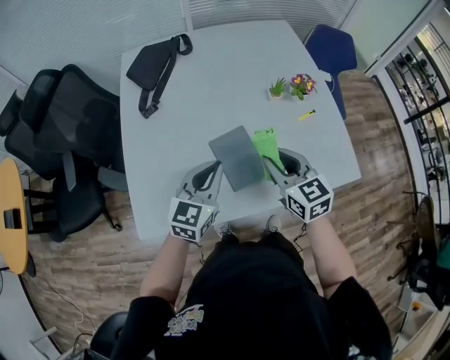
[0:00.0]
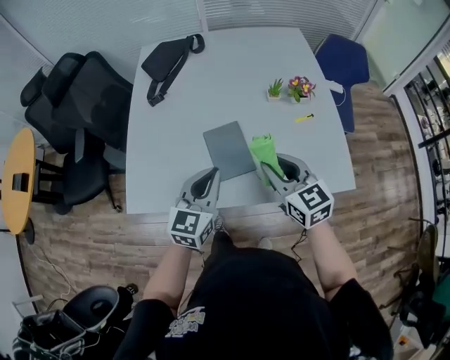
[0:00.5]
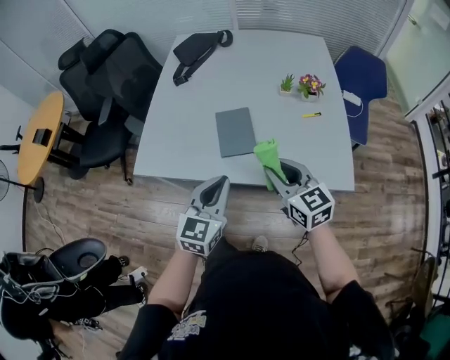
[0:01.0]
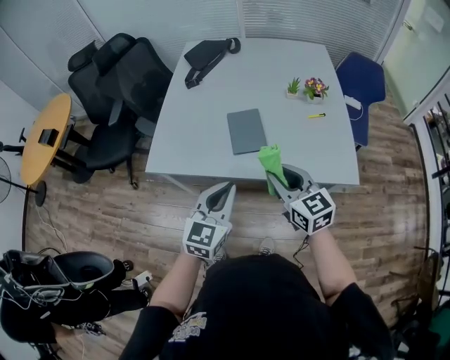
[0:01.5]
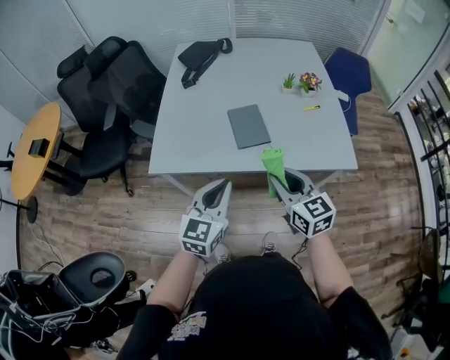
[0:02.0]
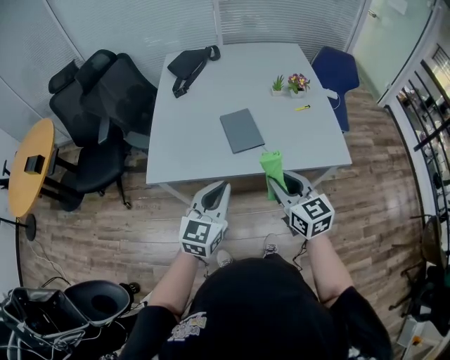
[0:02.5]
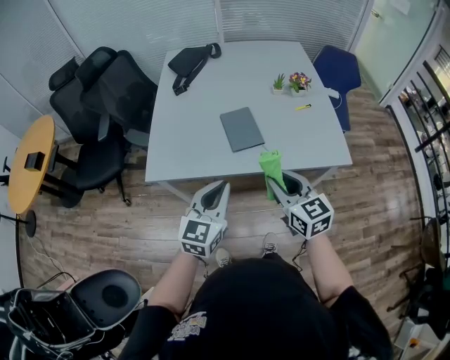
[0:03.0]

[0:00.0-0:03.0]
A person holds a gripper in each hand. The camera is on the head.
0:00.0 to 0:01.5: The two grippers go approximately 25 cm backward. The right gripper changes its angle by about 20 degrees.
0:01.5 to 0:03.0: The right gripper goes some 5 cm backward. The left gripper heads to the left, covering some 5 cm.

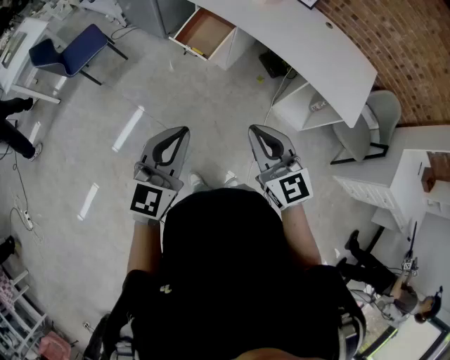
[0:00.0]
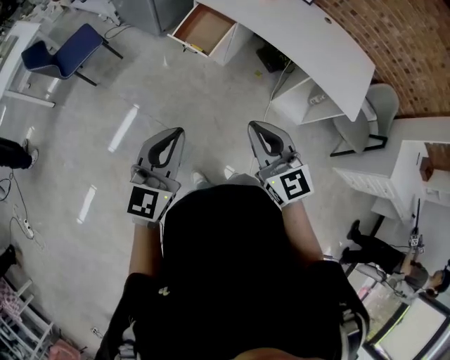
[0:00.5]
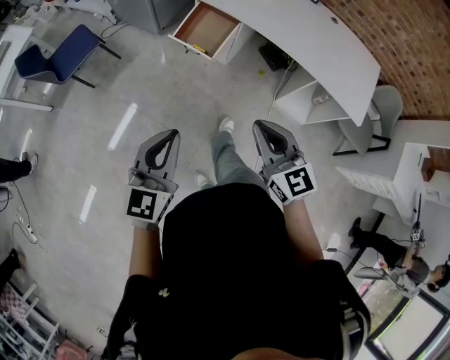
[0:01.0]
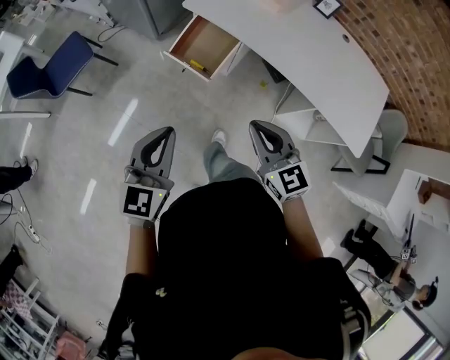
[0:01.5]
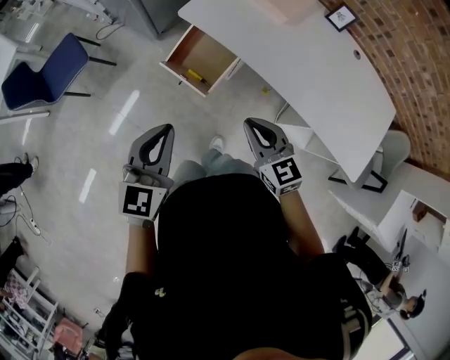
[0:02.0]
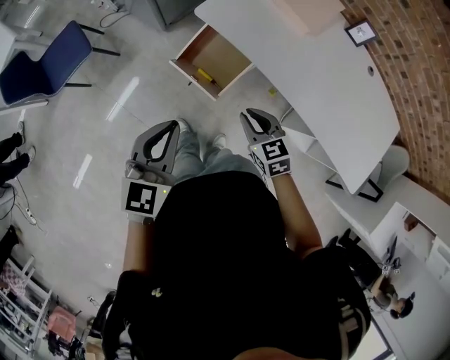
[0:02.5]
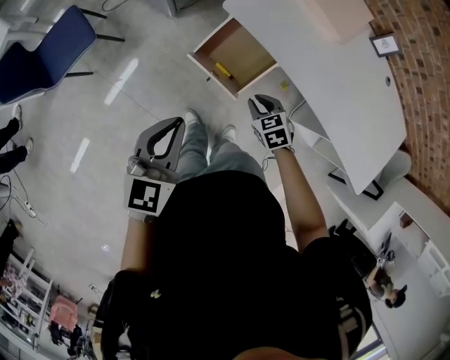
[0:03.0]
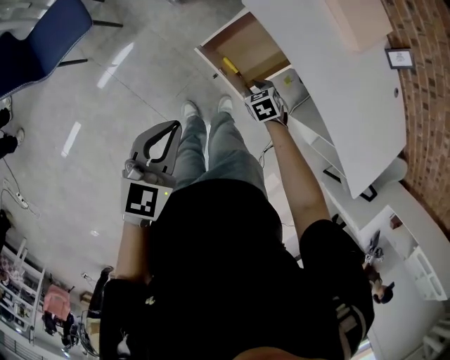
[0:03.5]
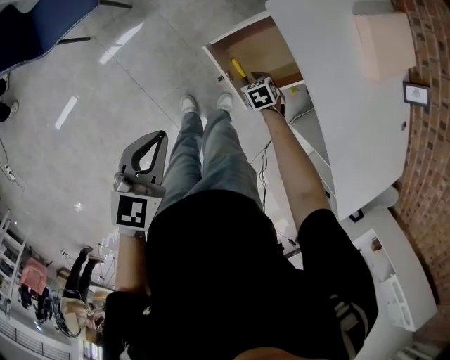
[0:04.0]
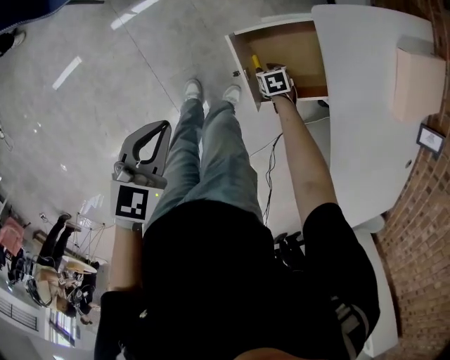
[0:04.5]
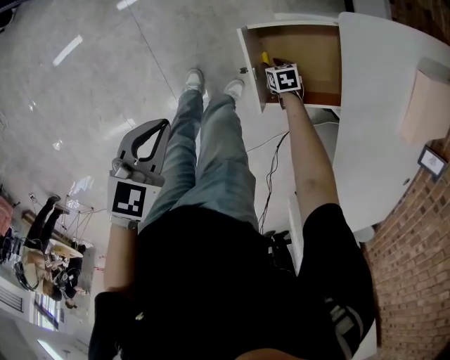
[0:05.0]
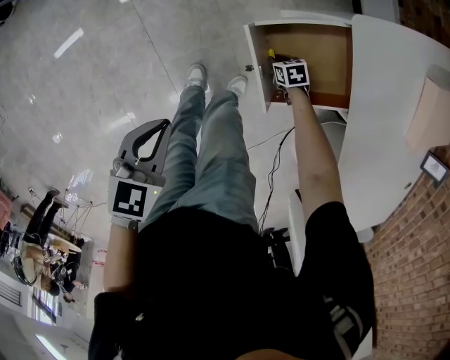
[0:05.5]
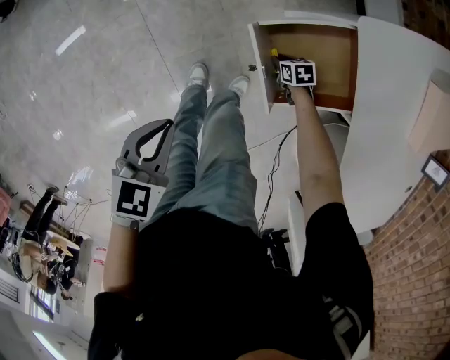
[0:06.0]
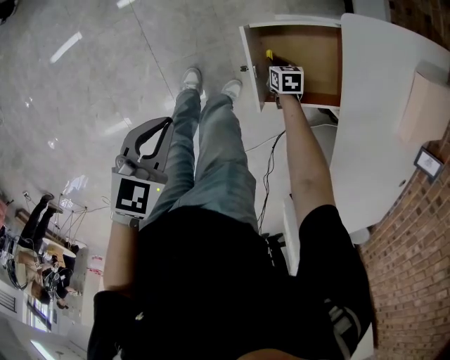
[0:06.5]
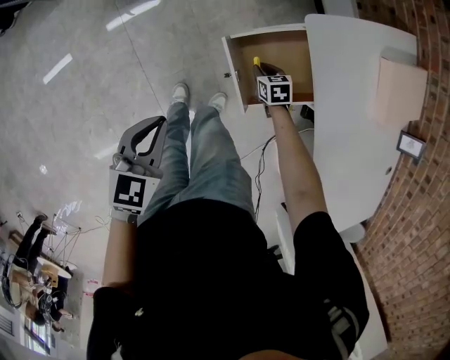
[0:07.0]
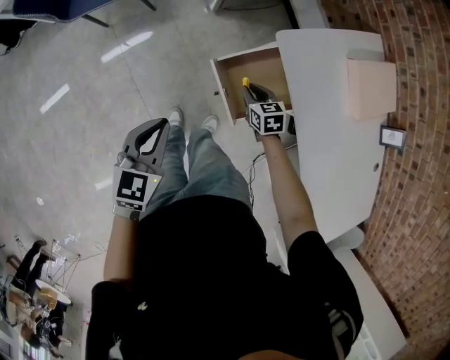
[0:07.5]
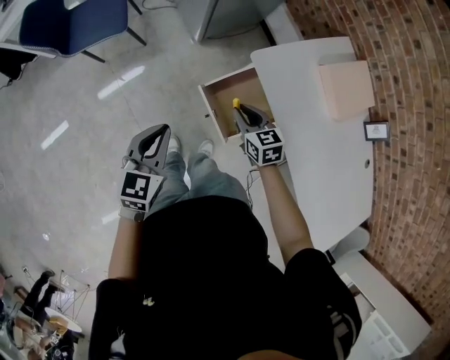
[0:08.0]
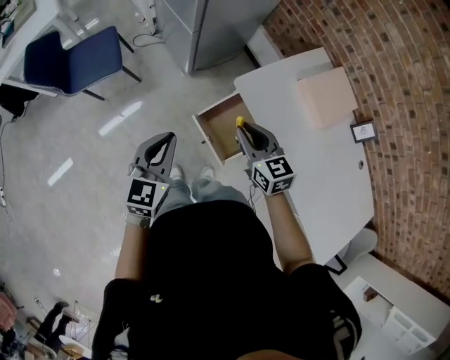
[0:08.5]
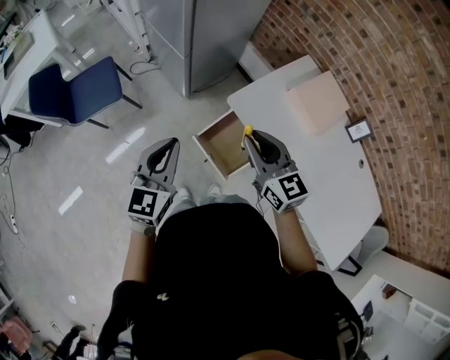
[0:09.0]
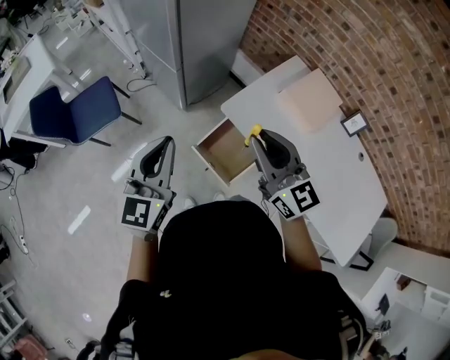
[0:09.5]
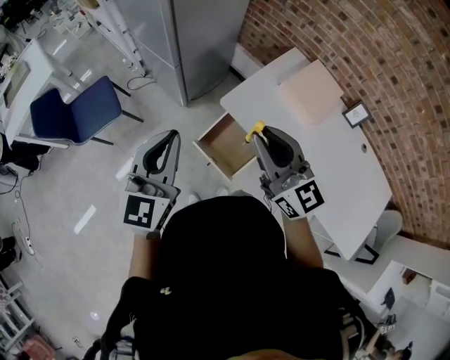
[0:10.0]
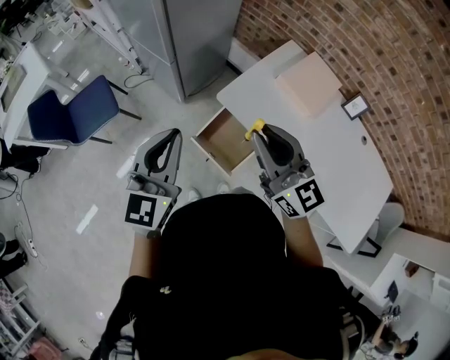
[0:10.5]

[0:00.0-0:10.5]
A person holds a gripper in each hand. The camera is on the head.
0:00.0 to 0:02.0: The two grippers go approximately 35 cm forward.
0:02.0 to 0:04.0: The right gripper is displaced downward by about 40 cm, angles its fingers downward, by roughly 50 degrees, and opens up, while the left gripper changes place by roughly 30 cm, and rotates roughly 30 degrees.
0:04.0 to 0:06.5: The grippers both shift downward by some 10 cm.
0:06.5 to 0:08.5: The left gripper is displaced upward by roughly 25 cm, and changes its angle by approximately 30 degrees; the right gripper heads upward, covering some 50 cm, and points its fingers roughly 40 degrees further upward.
0:08.5 to 0:10.5: Both grippers travel together upward, some 20 cm. The right gripper rotates some 30 degrees.

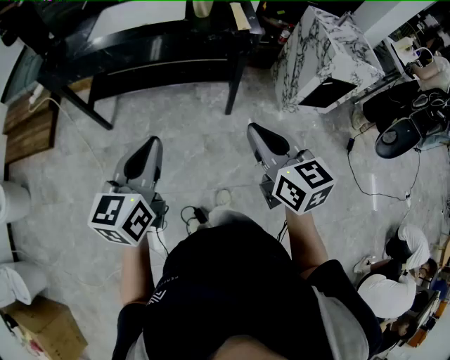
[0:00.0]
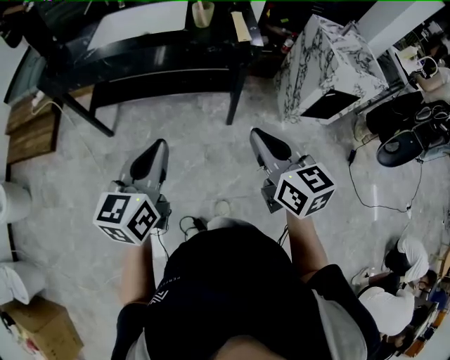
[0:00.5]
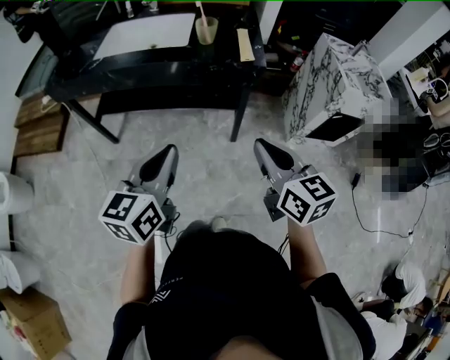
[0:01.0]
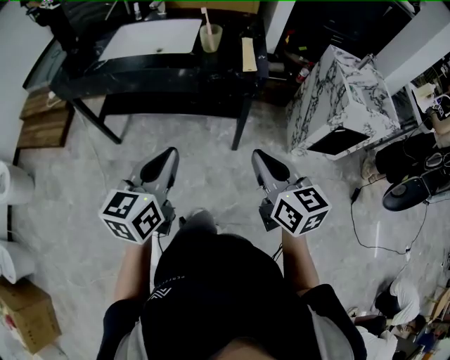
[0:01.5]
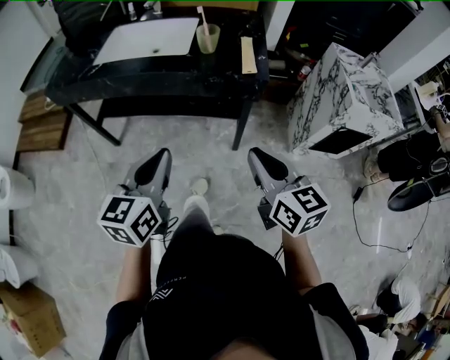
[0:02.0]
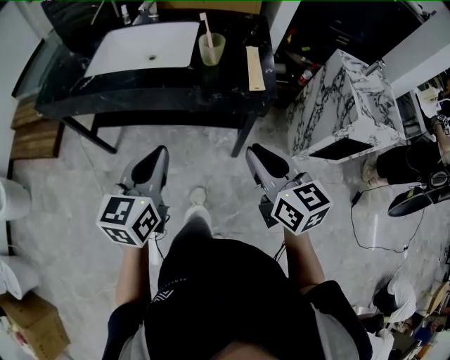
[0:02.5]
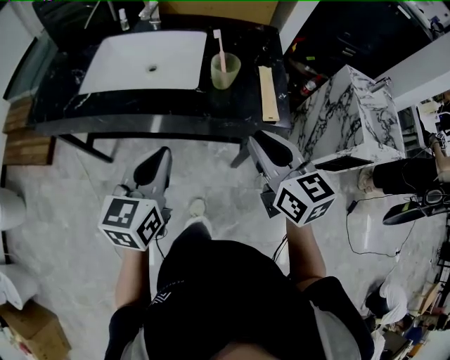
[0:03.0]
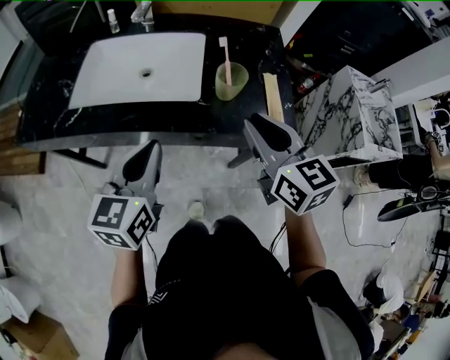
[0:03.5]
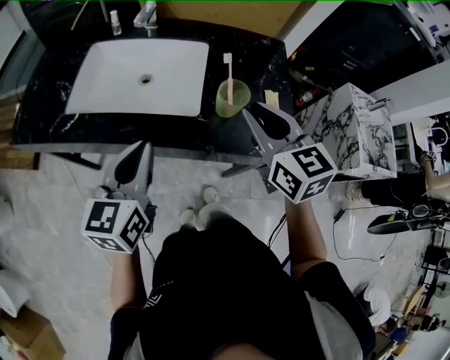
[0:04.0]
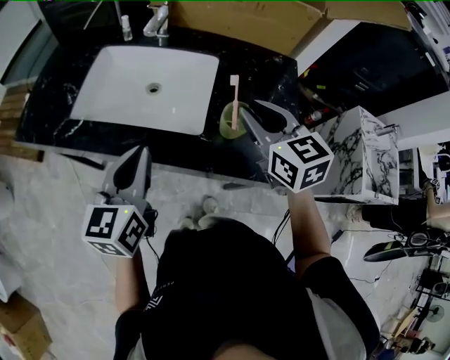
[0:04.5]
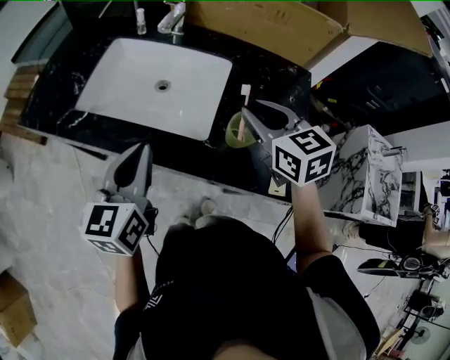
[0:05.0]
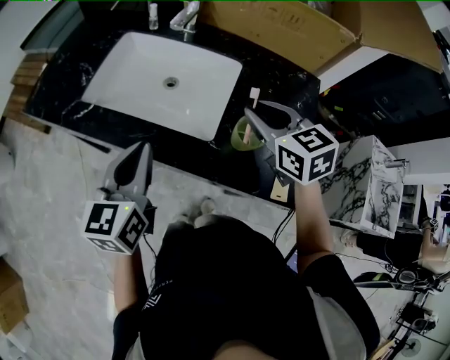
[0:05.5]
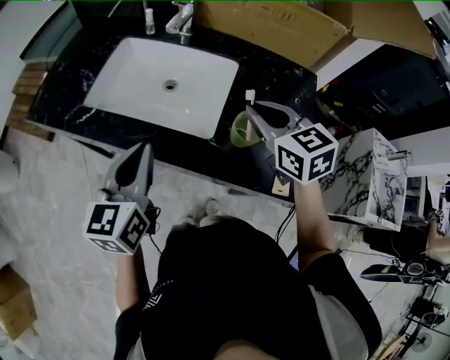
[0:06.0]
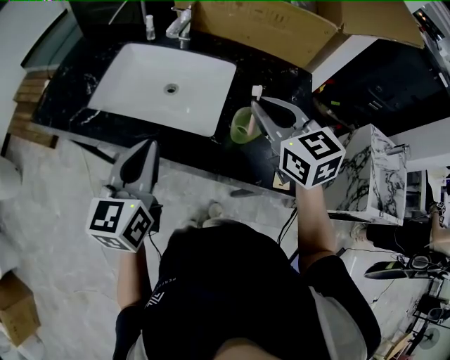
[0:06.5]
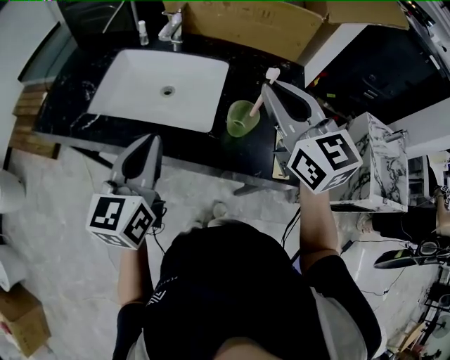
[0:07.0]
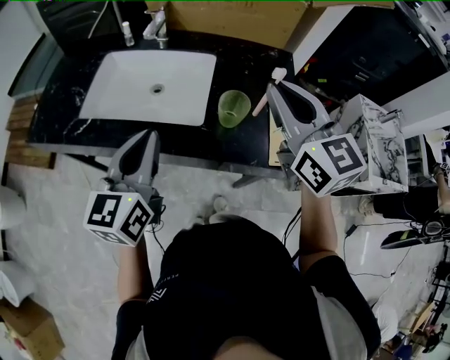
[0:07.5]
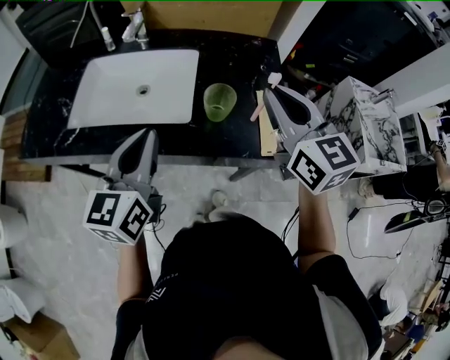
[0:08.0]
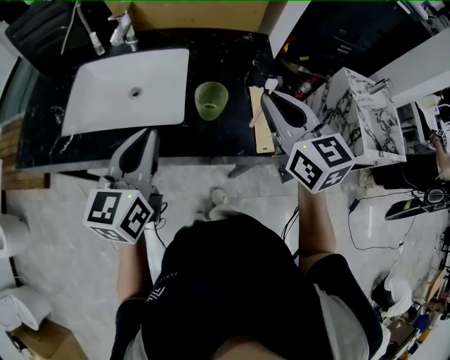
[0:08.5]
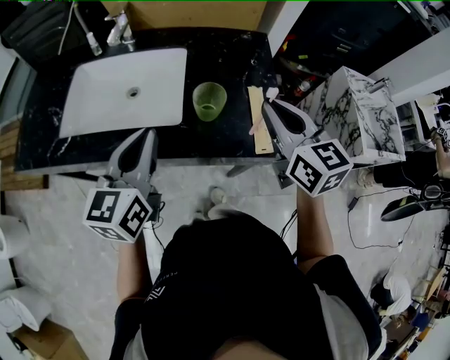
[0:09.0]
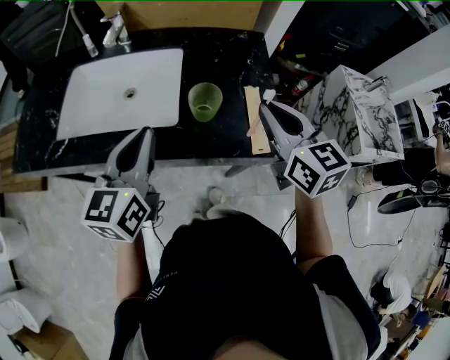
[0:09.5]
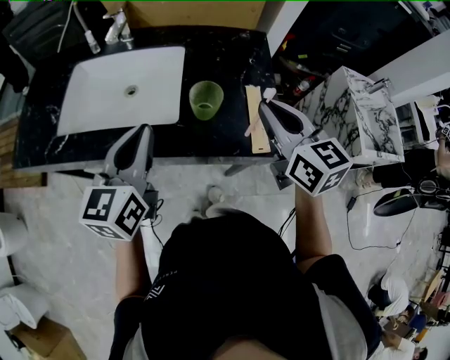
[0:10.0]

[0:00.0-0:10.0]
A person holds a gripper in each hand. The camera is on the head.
0:00.0 to 0:02.0: The grippers both shift forward and to the right by some 15 cm.
0:02.0 to 0:04.0: The two grippers go some 35 cm forward.
0:04.0 to 0:06.0: The right gripper heads forward, covering about 10 cm, and swivels some 20 degrees.
0:06.0 to 0:08.0: The right gripper shifts about 15 cm backward, upward and to the right, and rotates roughly 30 degrees. The left gripper moves to the right, about 5 cm.
0:08.0 to 0:10.0: The right gripper travels downward by approximately 5 cm.

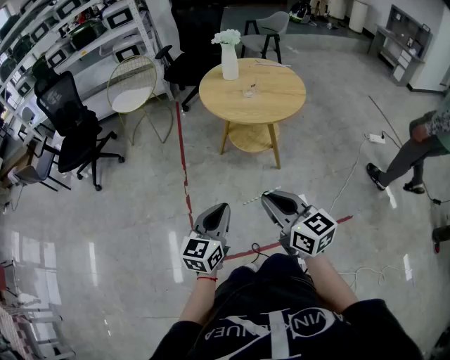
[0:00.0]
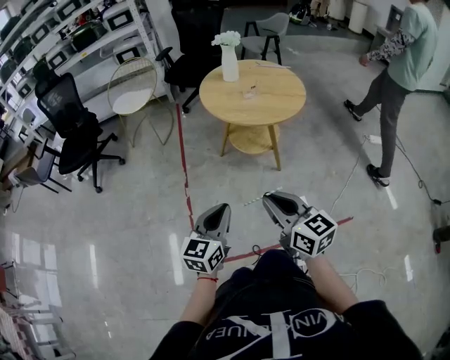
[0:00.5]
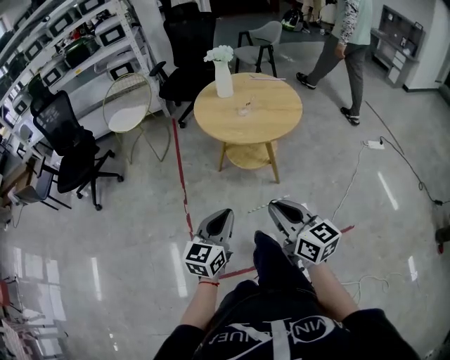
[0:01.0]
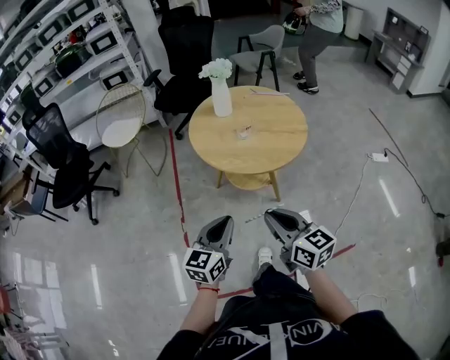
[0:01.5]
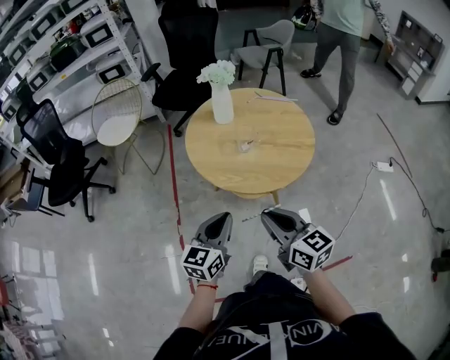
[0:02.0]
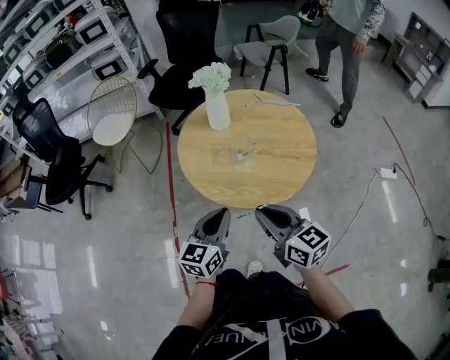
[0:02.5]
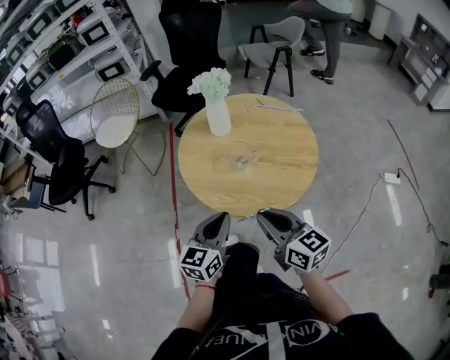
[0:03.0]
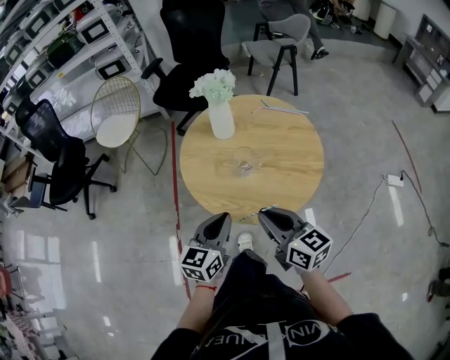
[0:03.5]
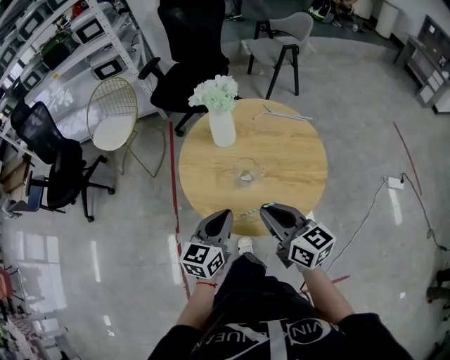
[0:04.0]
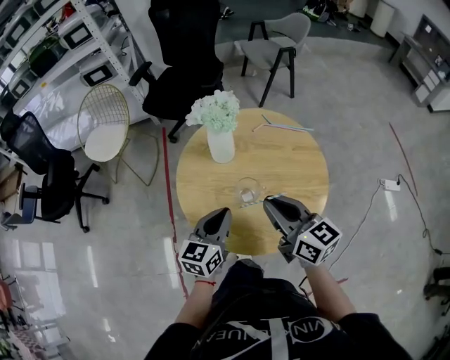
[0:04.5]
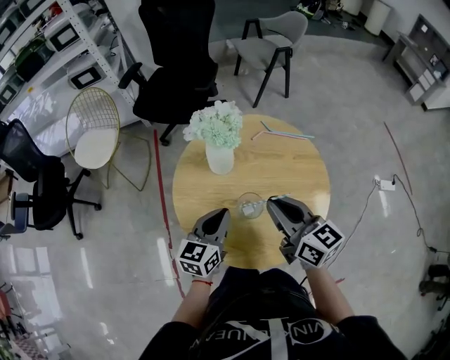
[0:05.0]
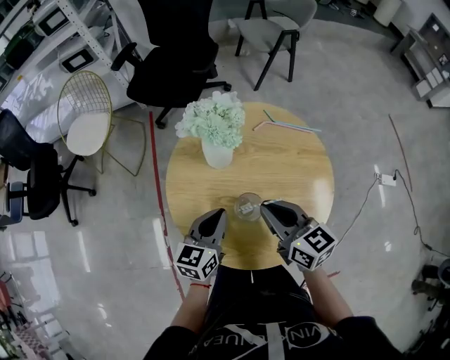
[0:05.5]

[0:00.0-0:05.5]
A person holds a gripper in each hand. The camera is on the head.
0:00.0 to 0:02.0: The two grippers go some 30 cm forward.
0:02.0 to 0:03.5: The right gripper heads forward, covering roughly 15 cm, while the left gripper travels forward and to the right by approximately 15 cm.
0:03.5 to 0:05.5: Both grippers move forward, approximately 20 cm.
